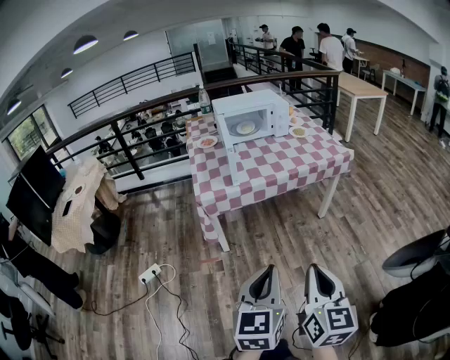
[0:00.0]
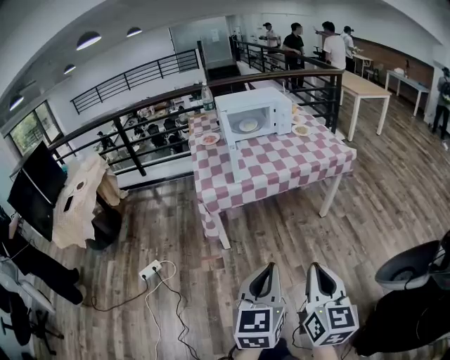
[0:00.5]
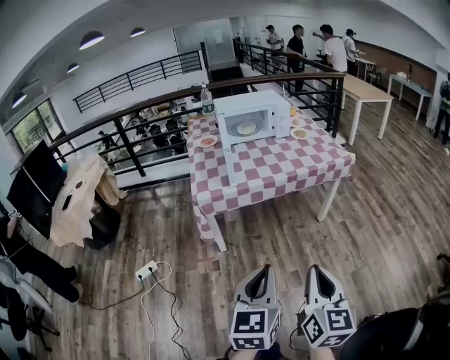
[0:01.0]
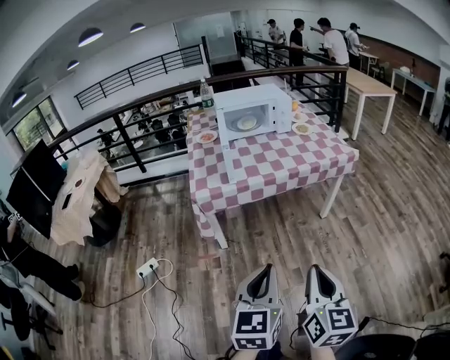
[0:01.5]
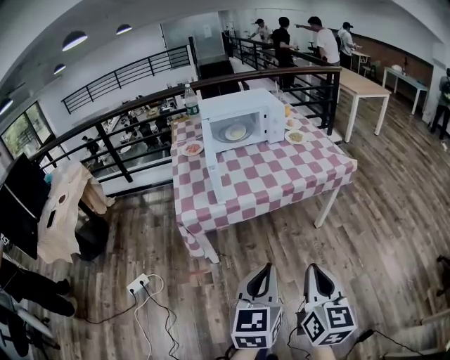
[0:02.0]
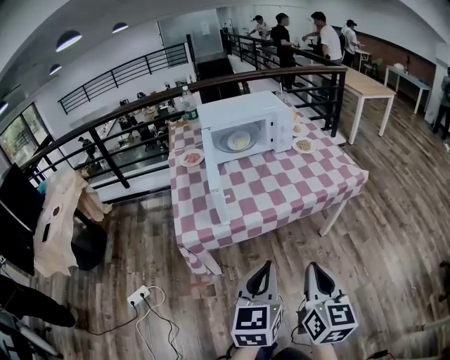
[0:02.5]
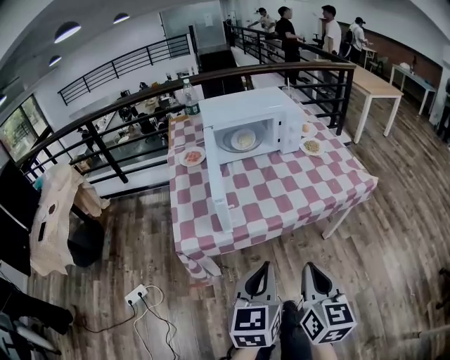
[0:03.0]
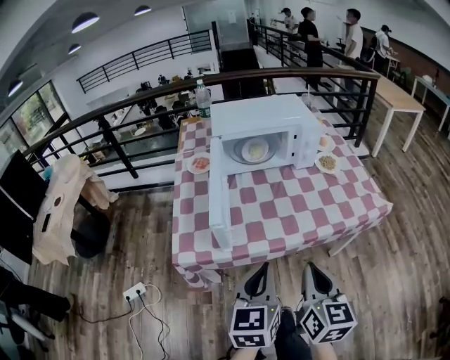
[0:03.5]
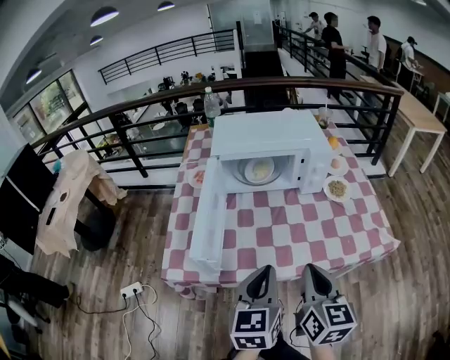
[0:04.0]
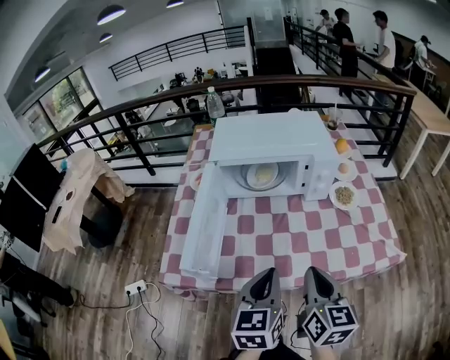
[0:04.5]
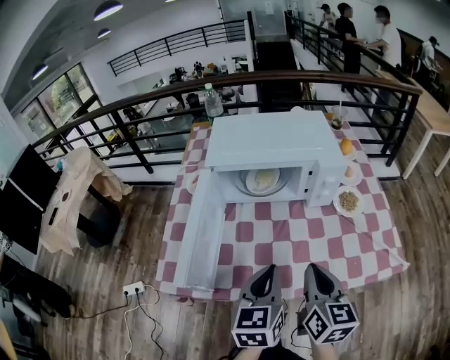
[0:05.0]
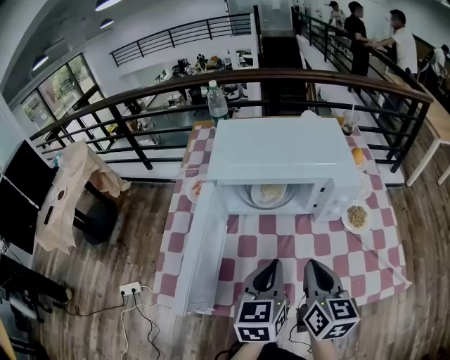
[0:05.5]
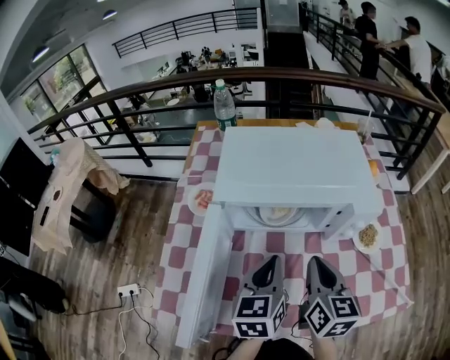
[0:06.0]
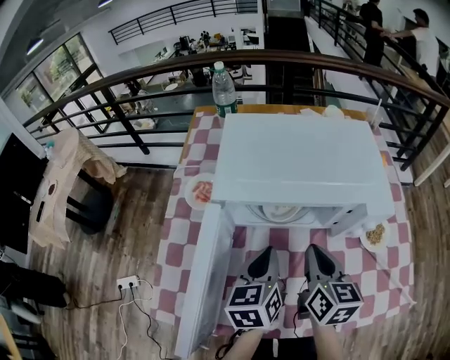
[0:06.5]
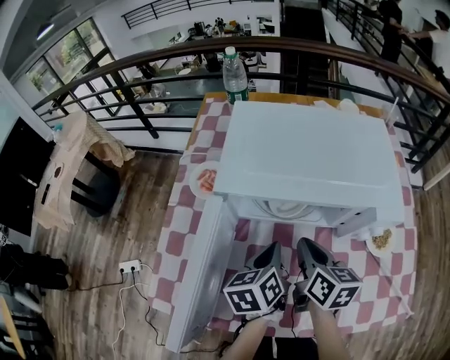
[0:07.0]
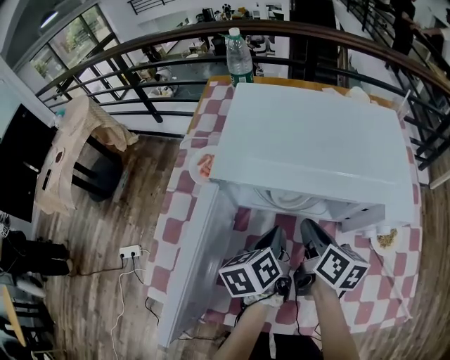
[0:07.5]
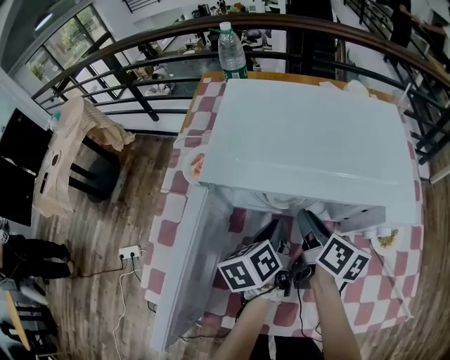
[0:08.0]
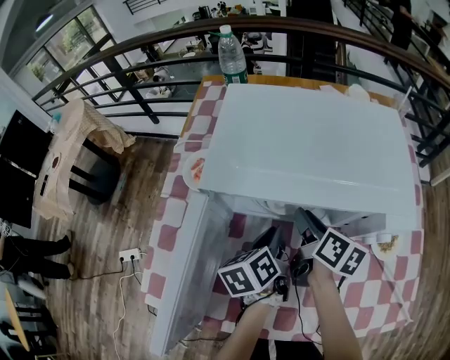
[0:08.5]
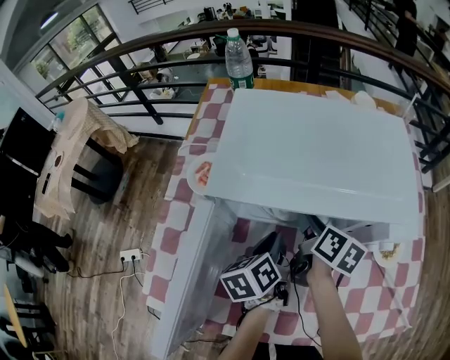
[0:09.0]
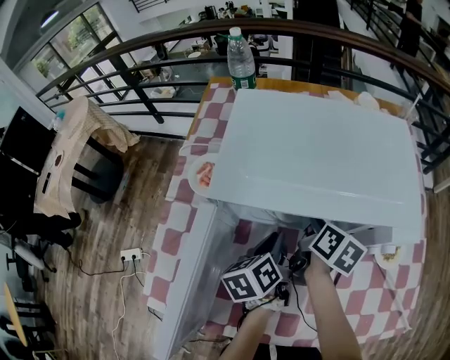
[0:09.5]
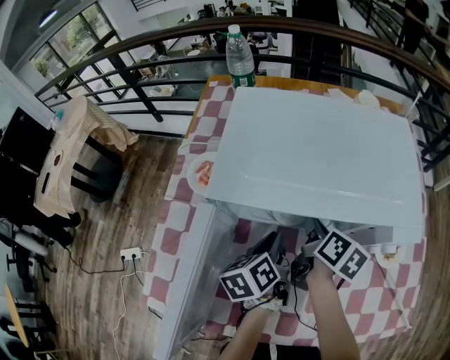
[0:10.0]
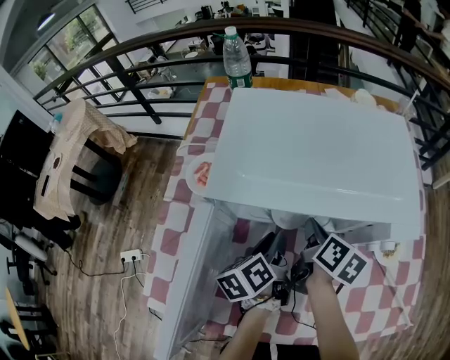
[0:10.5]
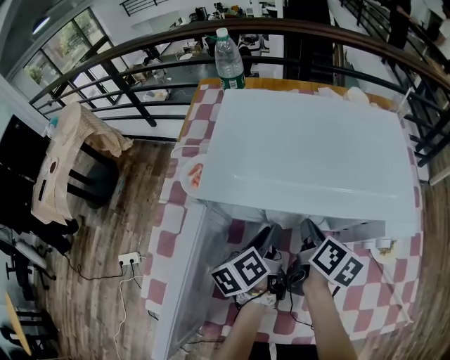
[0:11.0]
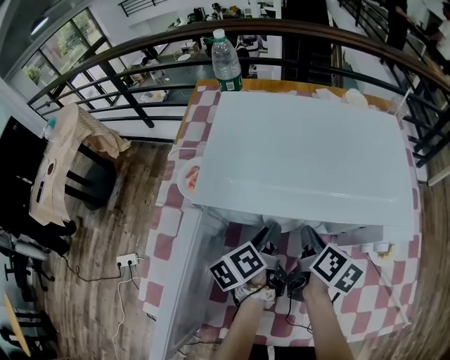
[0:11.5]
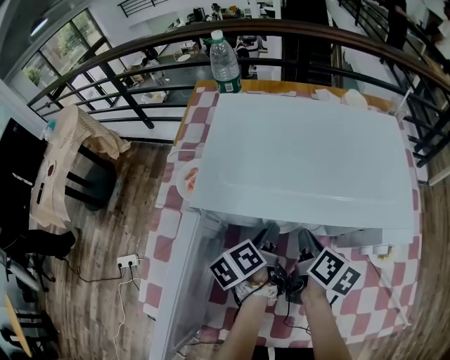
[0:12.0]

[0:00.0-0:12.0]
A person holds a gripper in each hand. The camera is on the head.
0:00.0 to 0:02.0: Both grippers travel together forward, approximately 15 cm.
0:02.0 to 0:04.0: The grippers both shift forward by about 40 cm.
0:04.0 to 0:06.0: The grippers both shift forward by roughly 25 cm.
0:06.0 to 0:08.0: The left gripper heads downward and forward, covering approximately 15 cm, and swivels roughly 40 degrees; the right gripper shifts about 15 cm forward and downward, swivels some 30 degrees, and opens up.
0:08.0 to 0:10.0: The grippers stay close to where they were, moving slightly.
0:10.0 to 0:12.0: The left gripper opens up.

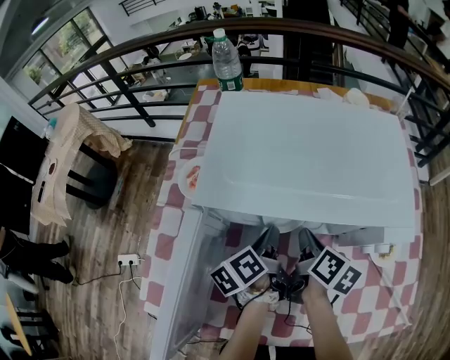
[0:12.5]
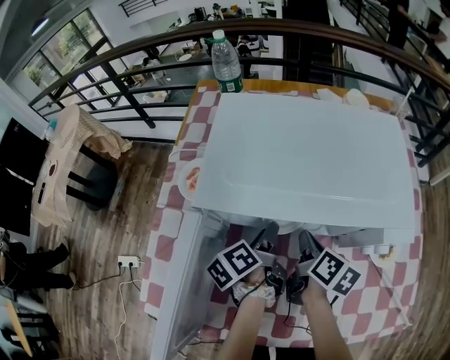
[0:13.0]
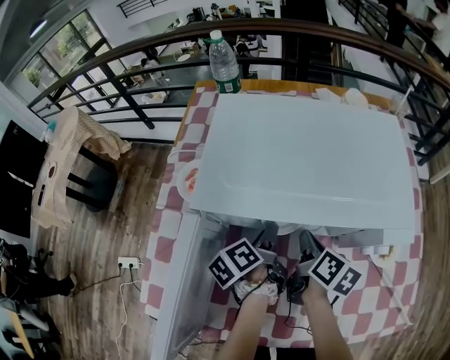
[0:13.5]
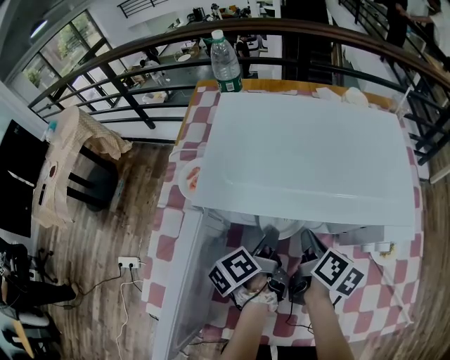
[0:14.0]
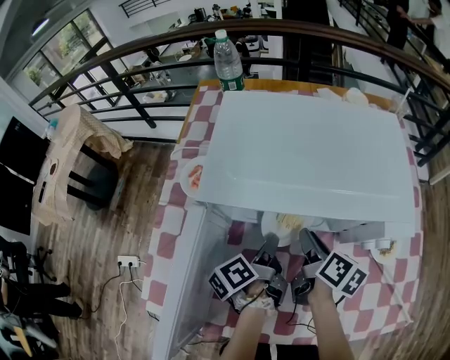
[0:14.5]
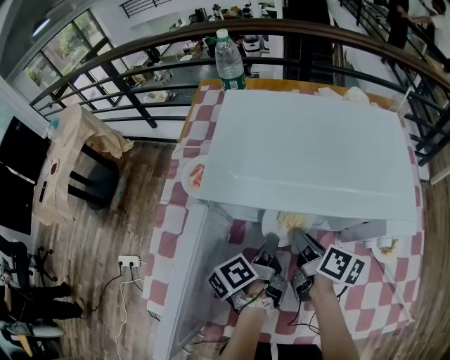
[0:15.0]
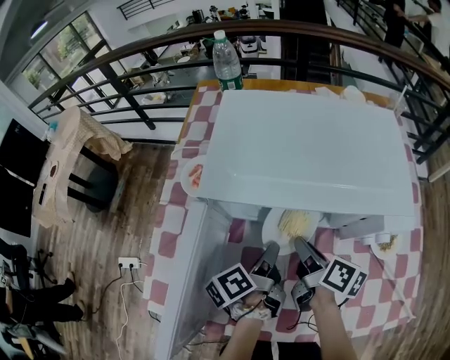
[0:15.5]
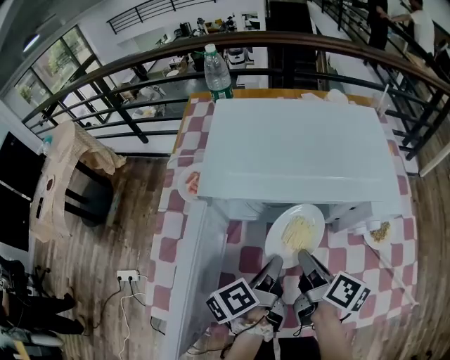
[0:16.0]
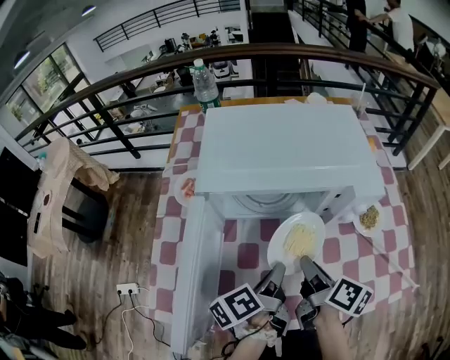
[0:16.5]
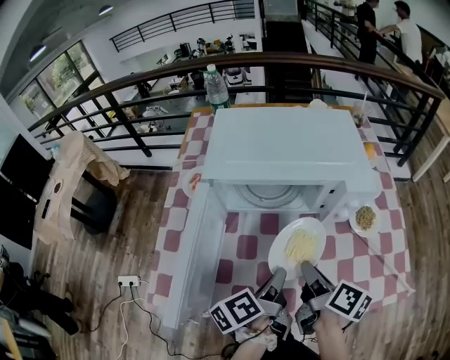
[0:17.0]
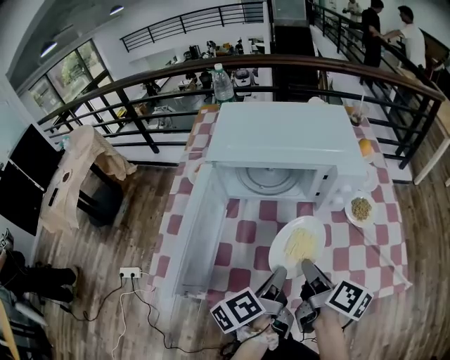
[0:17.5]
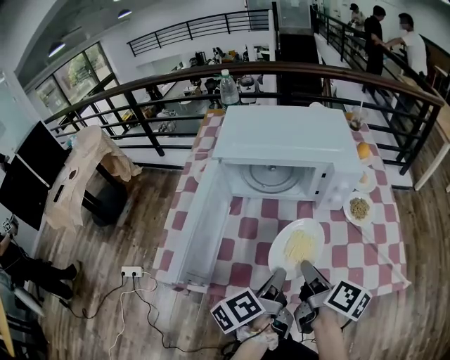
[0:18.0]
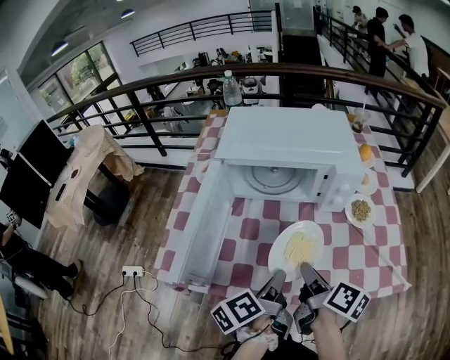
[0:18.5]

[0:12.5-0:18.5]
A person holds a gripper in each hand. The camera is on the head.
0:12.5 to 0:14.5: The left gripper opens, then closes again, while the right gripper opens.
0:14.5 to 0:16.5: The two grippers go about 15 cm backward and upward. The right gripper closes.
0:16.5 to 0:18.5: Both grippers travel together backward, approximately 10 cm.

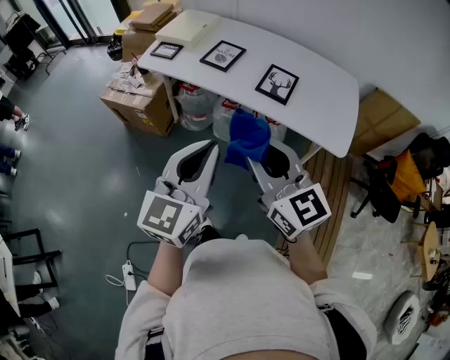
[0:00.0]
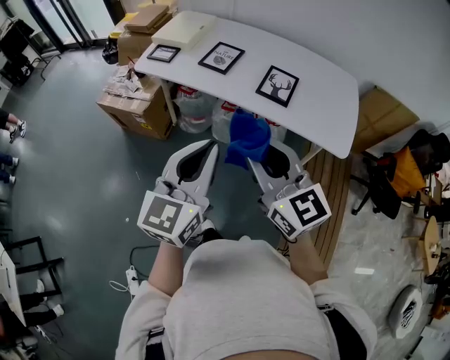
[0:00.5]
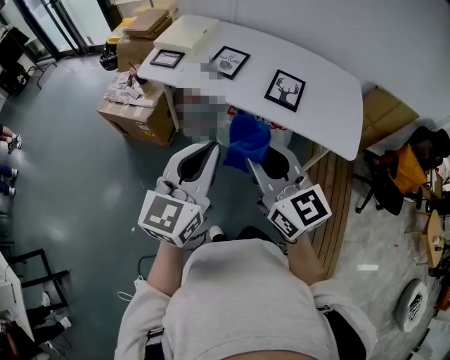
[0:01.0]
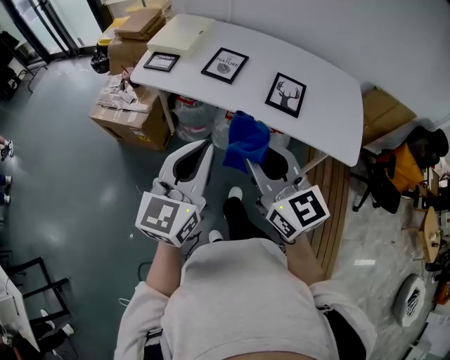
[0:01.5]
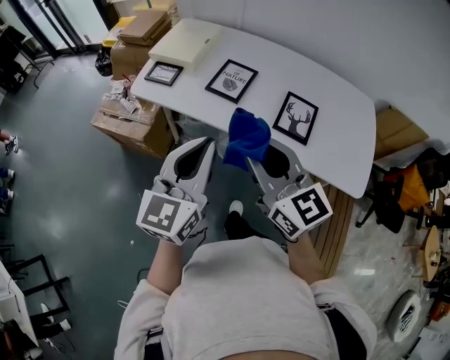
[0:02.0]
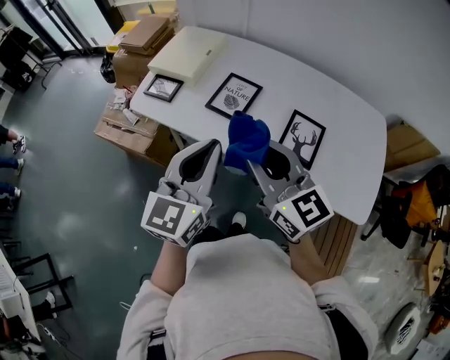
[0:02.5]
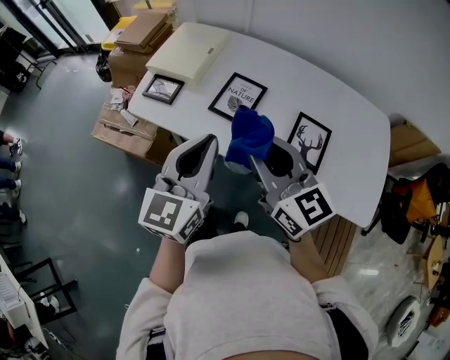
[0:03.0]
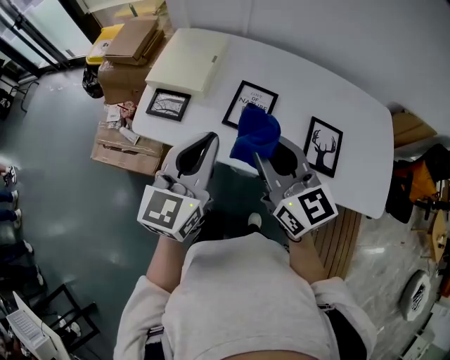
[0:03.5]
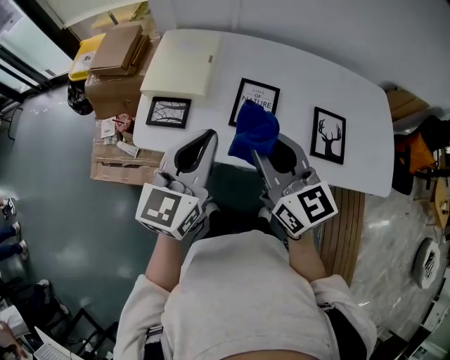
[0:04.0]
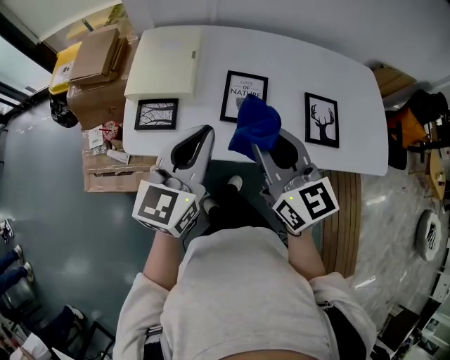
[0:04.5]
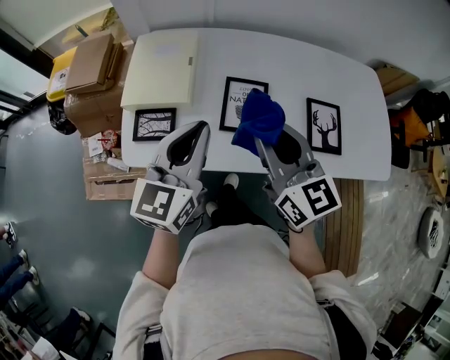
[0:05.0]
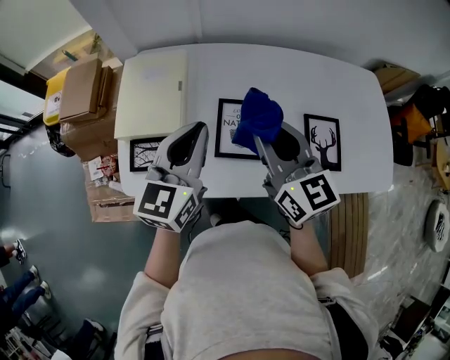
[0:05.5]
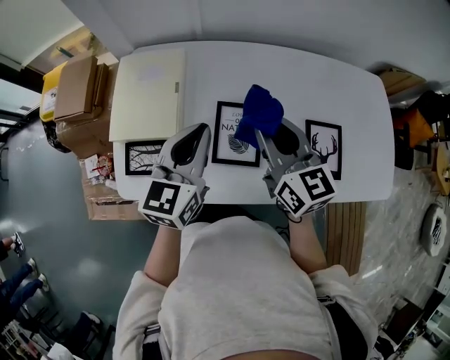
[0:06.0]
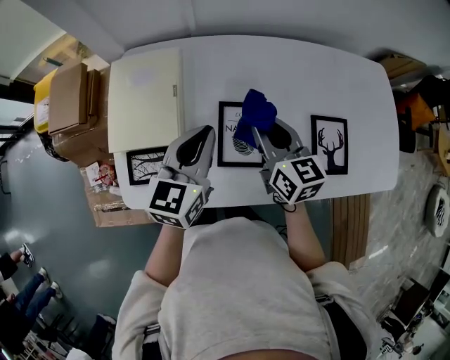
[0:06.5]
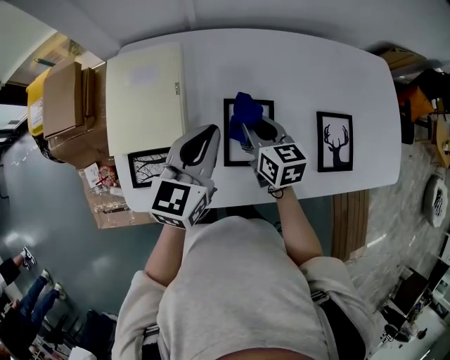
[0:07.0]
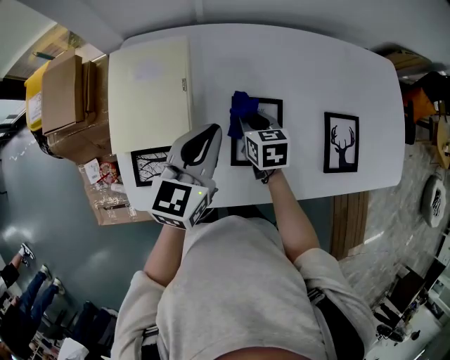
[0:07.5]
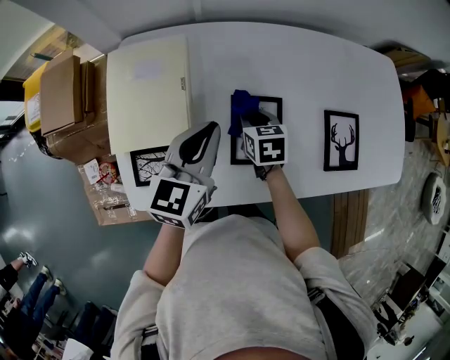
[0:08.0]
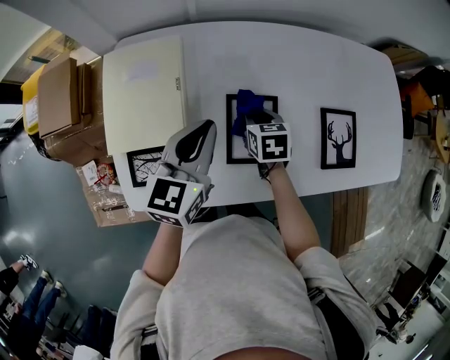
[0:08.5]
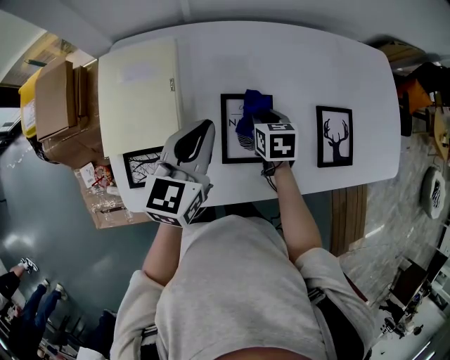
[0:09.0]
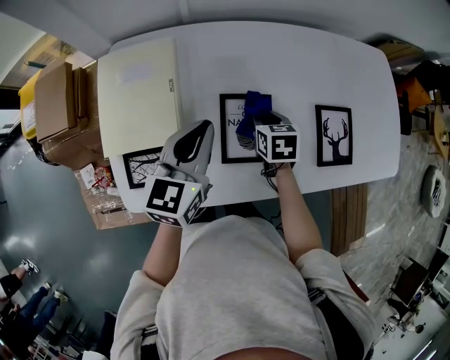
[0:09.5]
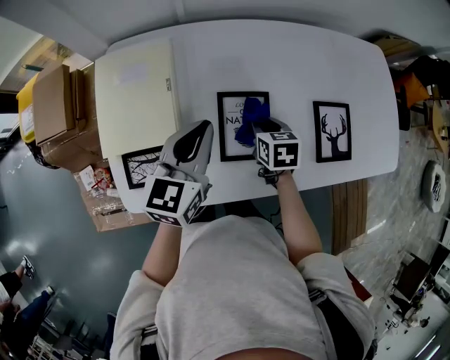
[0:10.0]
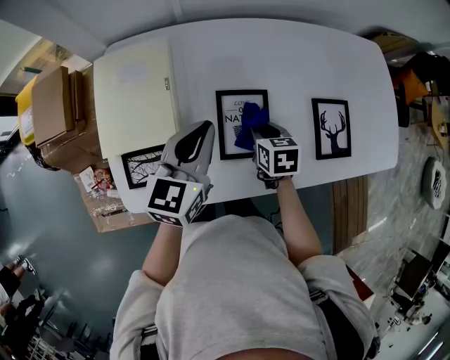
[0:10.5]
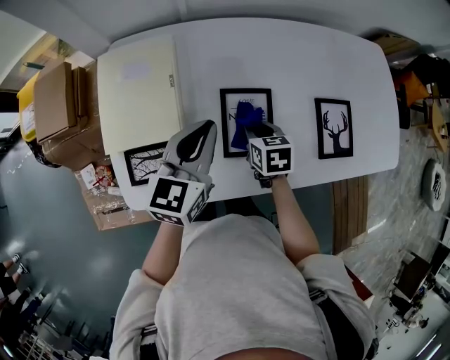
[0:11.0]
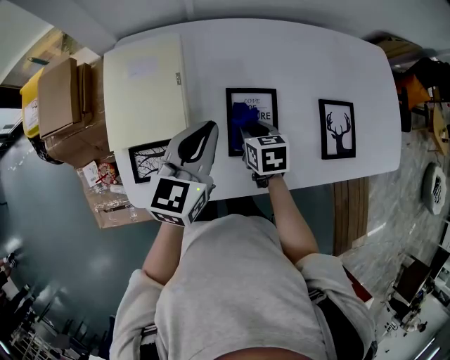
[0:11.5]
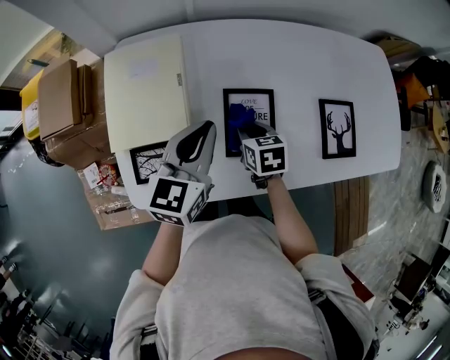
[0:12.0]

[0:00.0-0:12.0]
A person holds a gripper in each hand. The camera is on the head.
0:00.0 to 0:02.0: The grippers both shift forward by approximately 25 cm.
0:02.0 to 0:04.0: The two grippers go approximately 30 cm forward and to the left.
0:04.0 to 0:06.0: Both grippers travel together forward, approximately 20 cm.
0:06.0 to 0:08.0: The left gripper is displaced downward by some 5 cm. Meanwhile the right gripper goes roughly 25 cm downward, and tips its fingers downward by about 40 degrees.
0:08.0 to 0:10.0: The right gripper is displaced to the right by roughly 5 cm.
0:10.0 to 0:12.0: The right gripper goes some 5 cm to the left.
